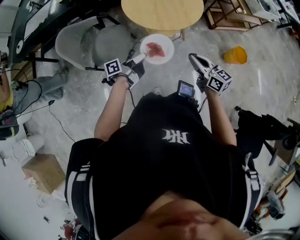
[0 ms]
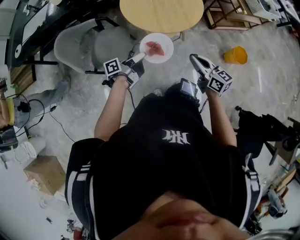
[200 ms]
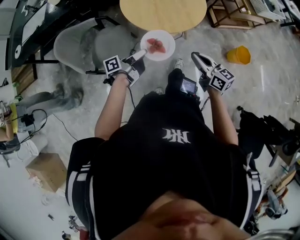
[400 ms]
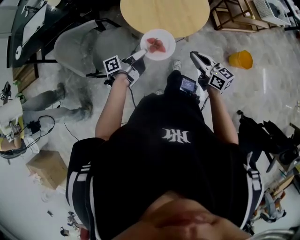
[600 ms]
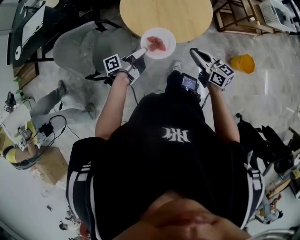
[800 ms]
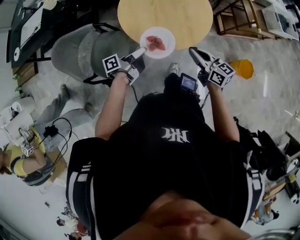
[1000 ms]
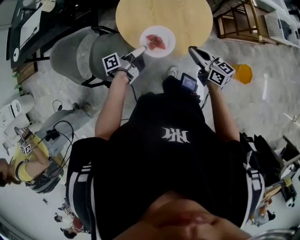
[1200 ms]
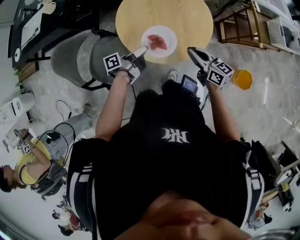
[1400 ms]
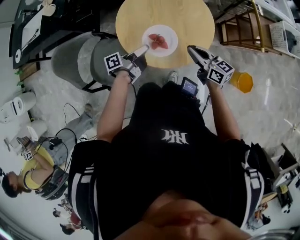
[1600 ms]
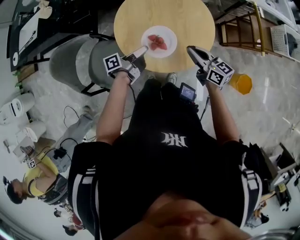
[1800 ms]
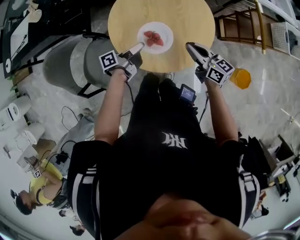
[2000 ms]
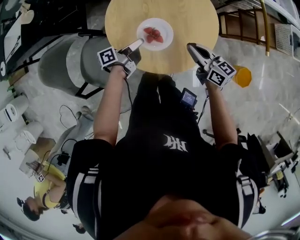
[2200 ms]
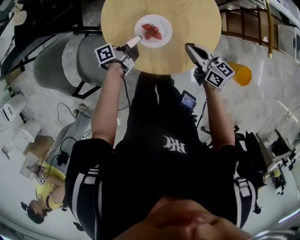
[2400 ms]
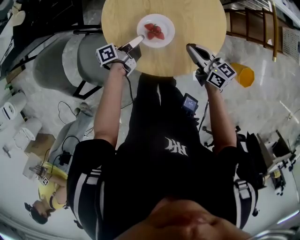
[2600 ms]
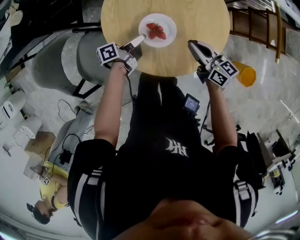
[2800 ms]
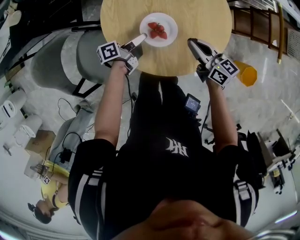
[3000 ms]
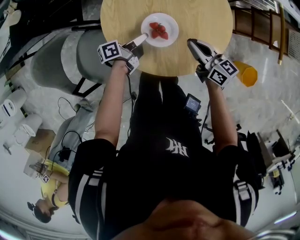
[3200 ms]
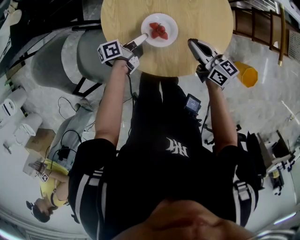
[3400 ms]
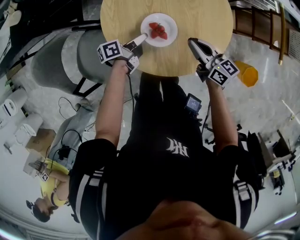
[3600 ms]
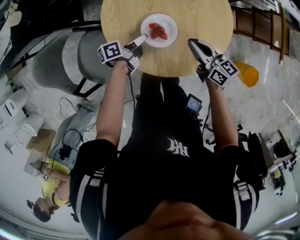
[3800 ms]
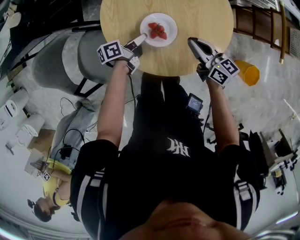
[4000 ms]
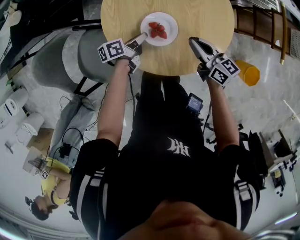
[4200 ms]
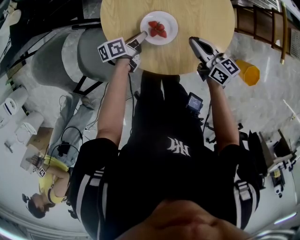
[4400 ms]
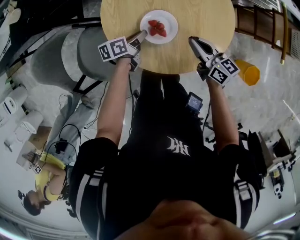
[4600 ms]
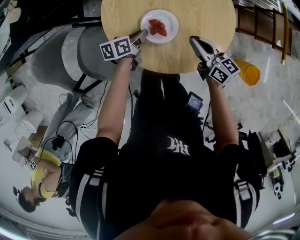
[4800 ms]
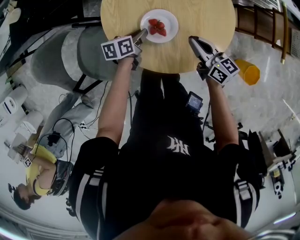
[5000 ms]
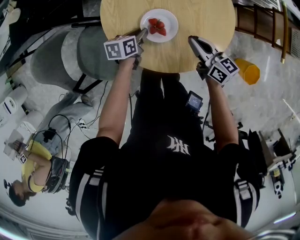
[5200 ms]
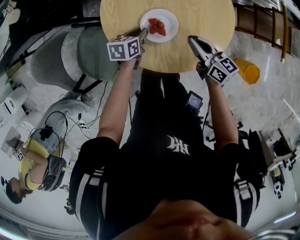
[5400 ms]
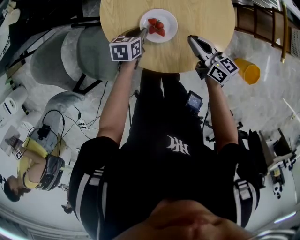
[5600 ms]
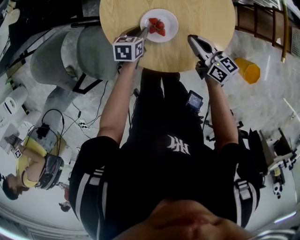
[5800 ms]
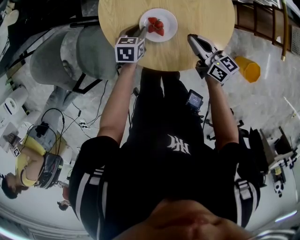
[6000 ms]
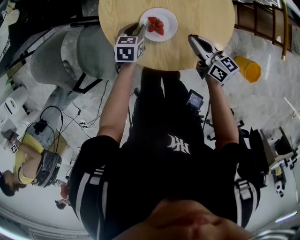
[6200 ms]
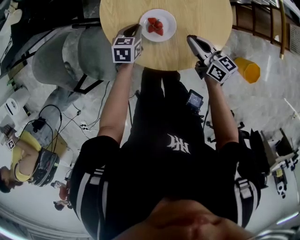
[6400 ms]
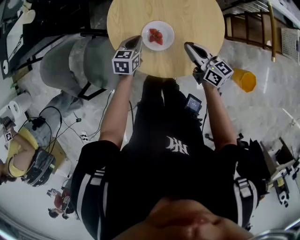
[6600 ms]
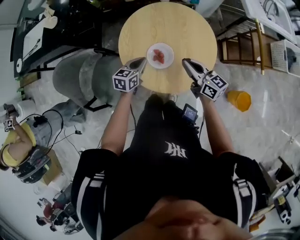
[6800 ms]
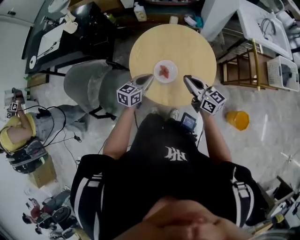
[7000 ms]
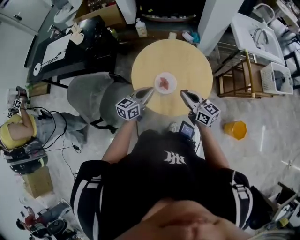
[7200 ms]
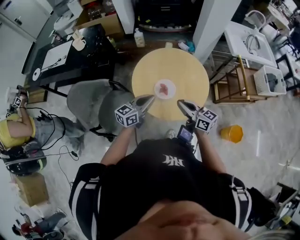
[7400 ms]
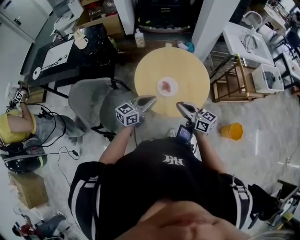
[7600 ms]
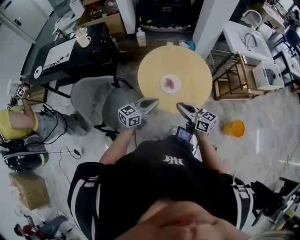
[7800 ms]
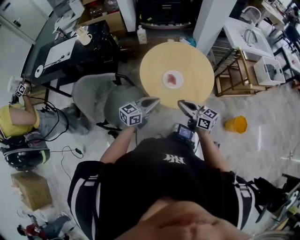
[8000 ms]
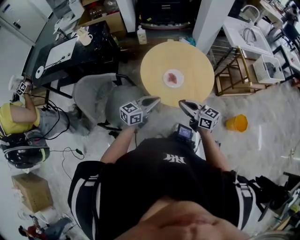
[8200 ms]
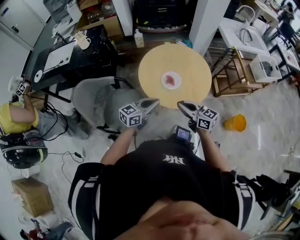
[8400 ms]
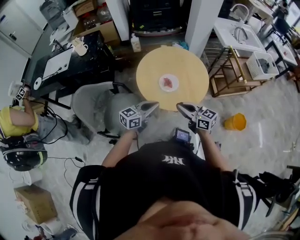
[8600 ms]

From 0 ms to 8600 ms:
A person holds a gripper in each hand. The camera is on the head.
From 0 ms to 1400 ms: The right gripper ends up approximately 30 cm from where it was.
From 1400 ms to 2800 ms: The right gripper shifts by some 15 cm.
From 5800 ms to 7200 ms: The right gripper moves upward, approximately 15 cm.
From 7200 ms to 8600 ms: The right gripper moves about 15 cm.

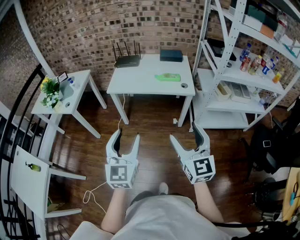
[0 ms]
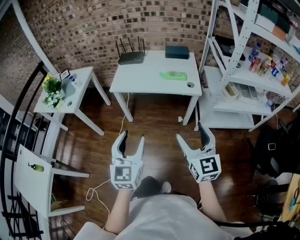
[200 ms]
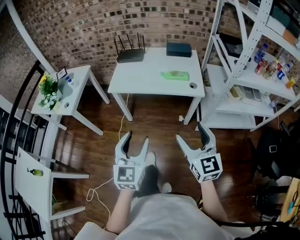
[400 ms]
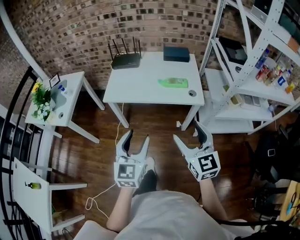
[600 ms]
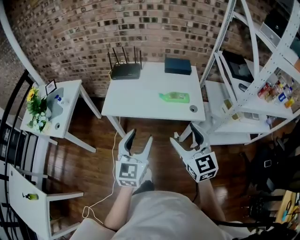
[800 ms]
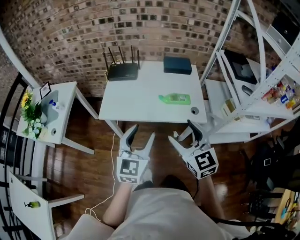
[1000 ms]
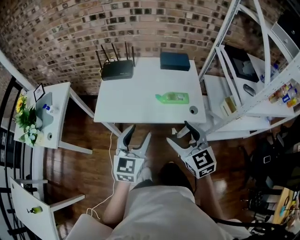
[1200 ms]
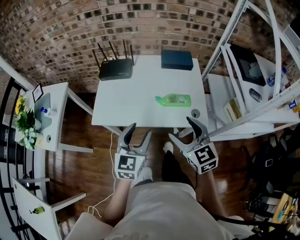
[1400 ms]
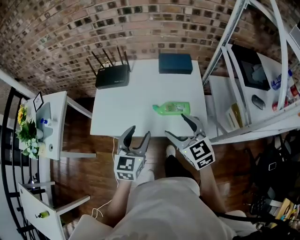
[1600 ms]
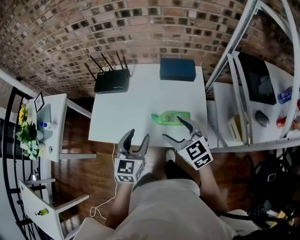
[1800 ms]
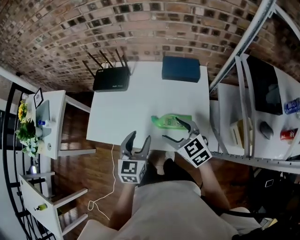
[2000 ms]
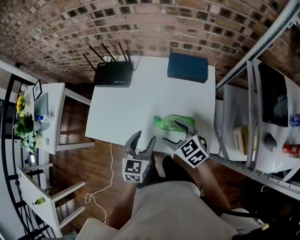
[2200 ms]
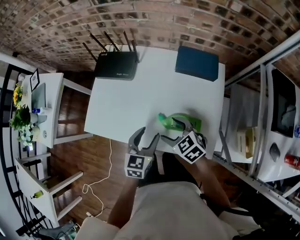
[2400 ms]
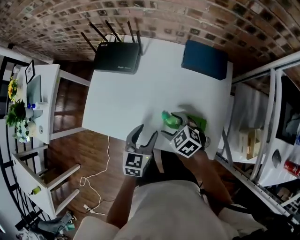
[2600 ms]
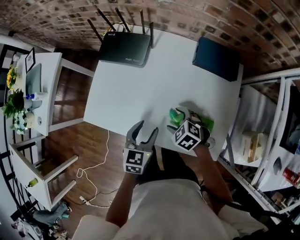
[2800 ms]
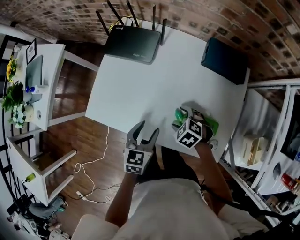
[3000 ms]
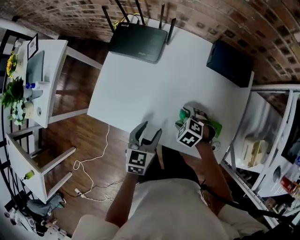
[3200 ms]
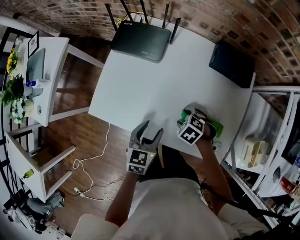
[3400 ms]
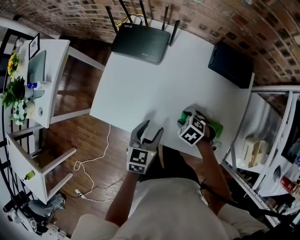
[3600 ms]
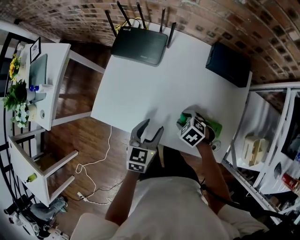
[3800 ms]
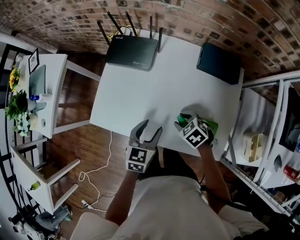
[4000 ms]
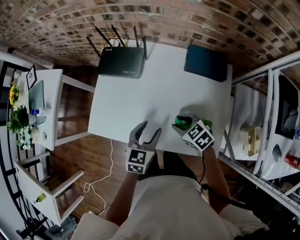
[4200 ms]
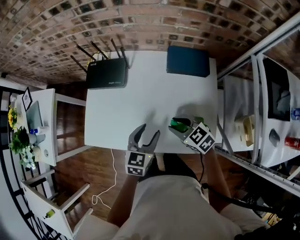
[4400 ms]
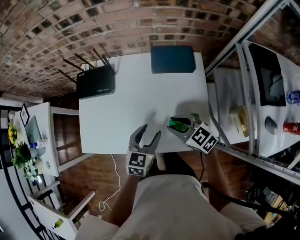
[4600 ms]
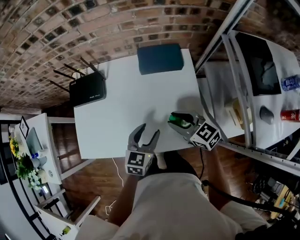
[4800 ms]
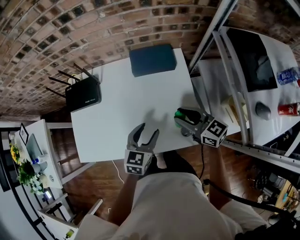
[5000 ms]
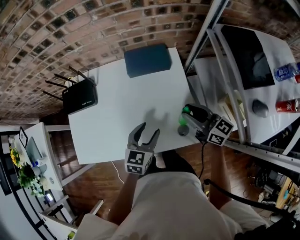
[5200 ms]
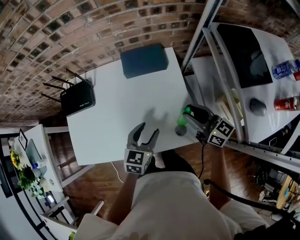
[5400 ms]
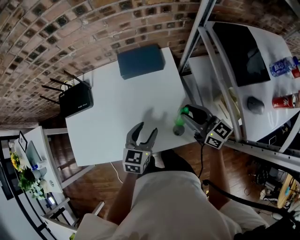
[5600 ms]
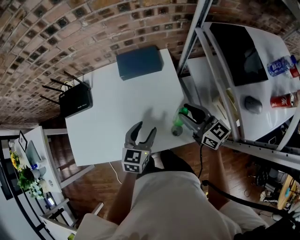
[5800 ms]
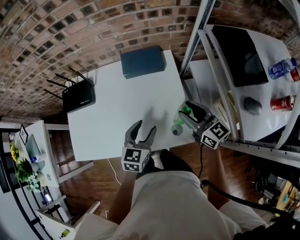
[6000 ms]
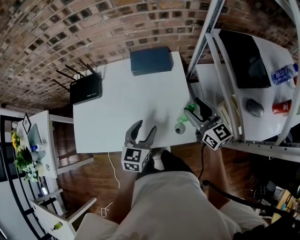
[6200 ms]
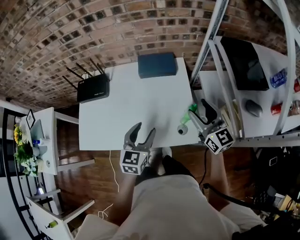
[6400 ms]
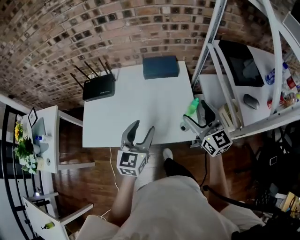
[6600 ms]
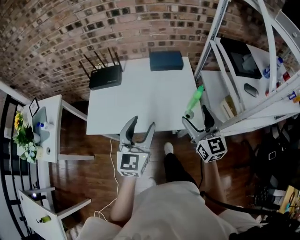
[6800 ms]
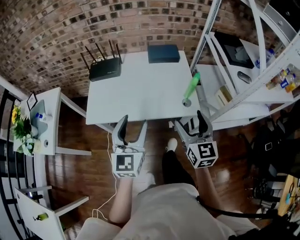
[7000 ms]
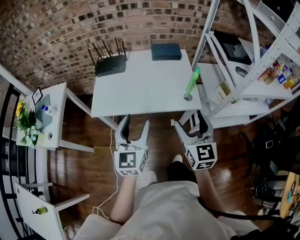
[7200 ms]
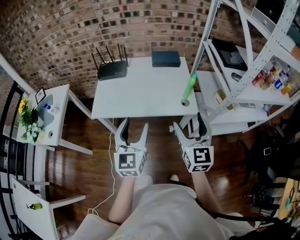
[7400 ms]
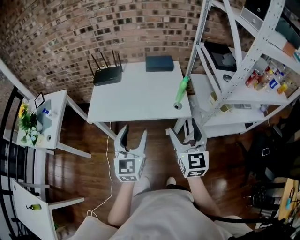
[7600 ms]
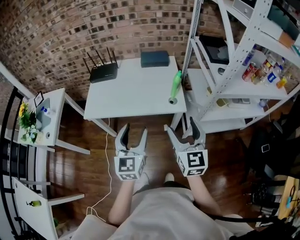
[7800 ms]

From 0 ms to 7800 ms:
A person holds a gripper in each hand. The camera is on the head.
From 0 ms to 1600 ms: Both grippers are carried forward, some 50 cm. The right gripper changes its angle by approximately 30 degrees; the left gripper changes its angle by approximately 20 degrees.
From 1600 ms to 3200 ms: The left gripper travels downward by about 20 cm, and turns by some 30 degrees. Meanwhile the right gripper heads downward, covering about 30 cm, and tilts its fingers about 50 degrees downward.
From 3200 ms to 4600 ms: The right gripper moves upward, some 15 cm, angles its fingers upward, by approximately 40 degrees, and closes up. Meanwhile the left gripper shifts by roughly 15 cm, and swivels roughly 20 degrees.
From 4600 ms to 6200 ms: The left gripper heads to the right, covering approximately 10 cm; the right gripper moves to the right and upward, approximately 20 cm, and turns by approximately 40 degrees.
From 6200 ms to 7800 ms: The right gripper travels backward by about 35 cm, and swivels roughly 20 degrees. Meanwhile the left gripper goes some 35 cm backward and upward, and changes its angle by about 30 degrees.

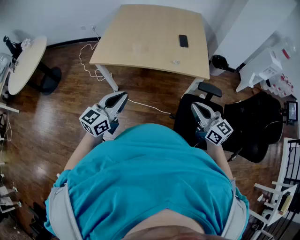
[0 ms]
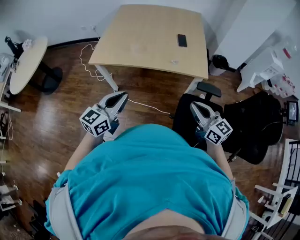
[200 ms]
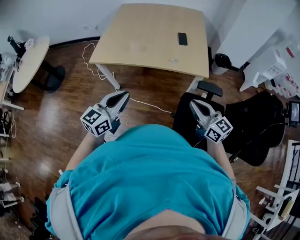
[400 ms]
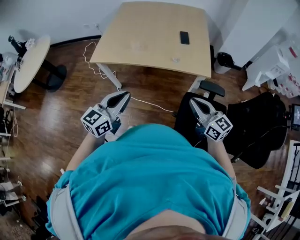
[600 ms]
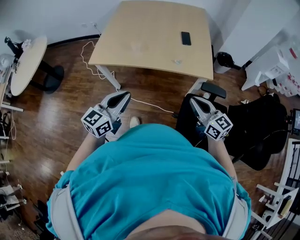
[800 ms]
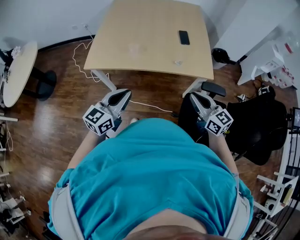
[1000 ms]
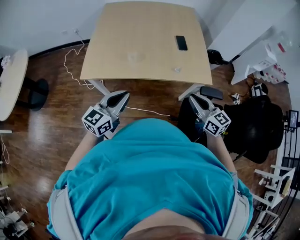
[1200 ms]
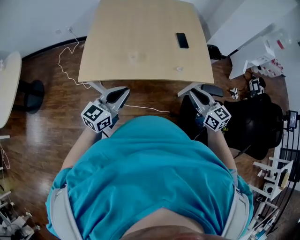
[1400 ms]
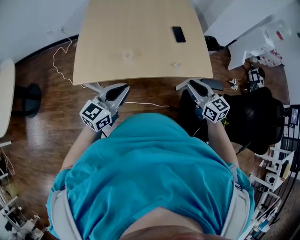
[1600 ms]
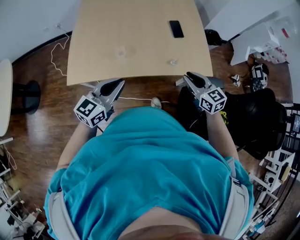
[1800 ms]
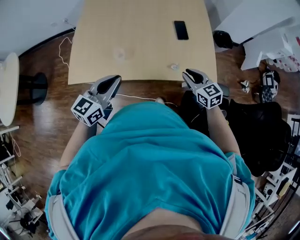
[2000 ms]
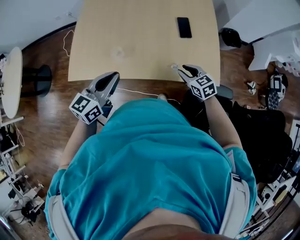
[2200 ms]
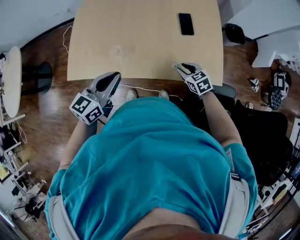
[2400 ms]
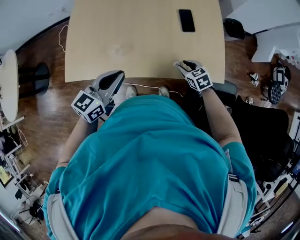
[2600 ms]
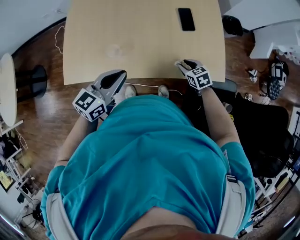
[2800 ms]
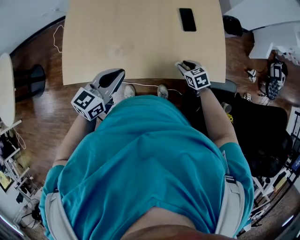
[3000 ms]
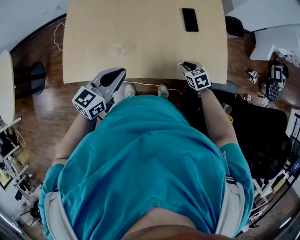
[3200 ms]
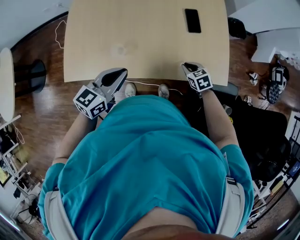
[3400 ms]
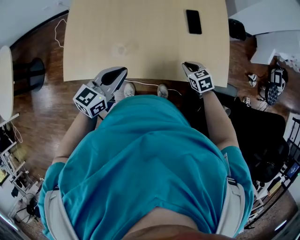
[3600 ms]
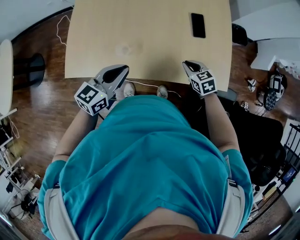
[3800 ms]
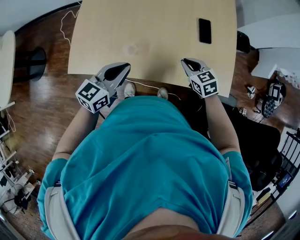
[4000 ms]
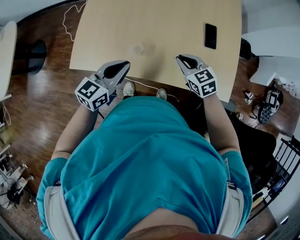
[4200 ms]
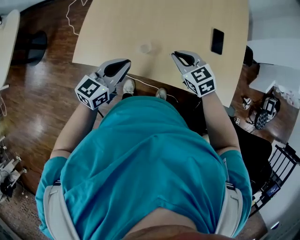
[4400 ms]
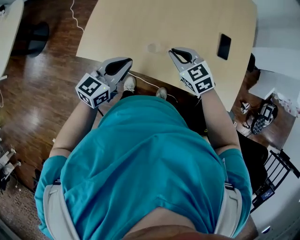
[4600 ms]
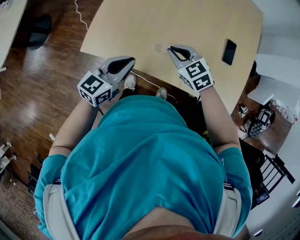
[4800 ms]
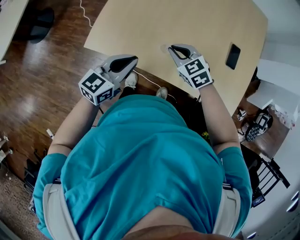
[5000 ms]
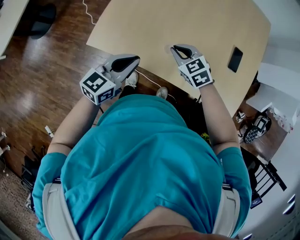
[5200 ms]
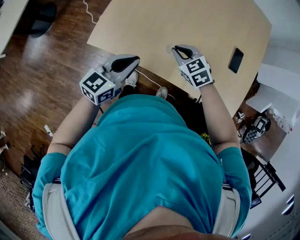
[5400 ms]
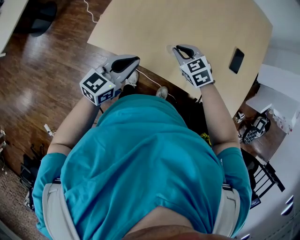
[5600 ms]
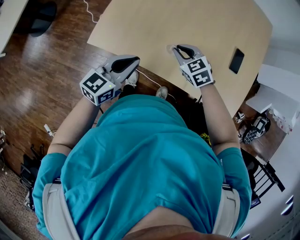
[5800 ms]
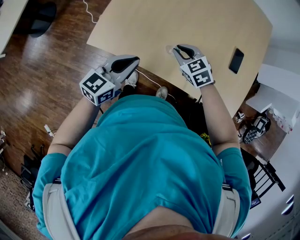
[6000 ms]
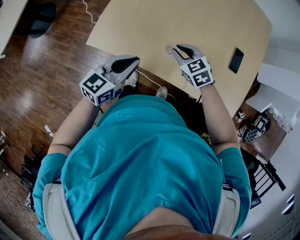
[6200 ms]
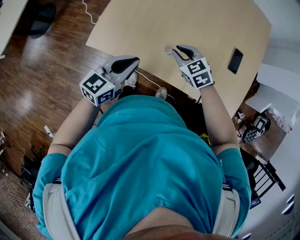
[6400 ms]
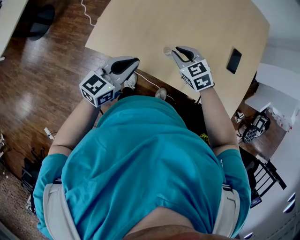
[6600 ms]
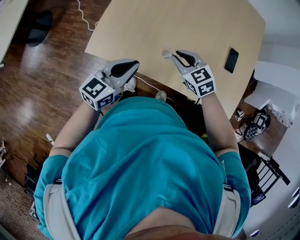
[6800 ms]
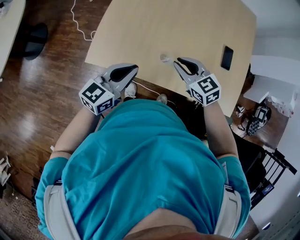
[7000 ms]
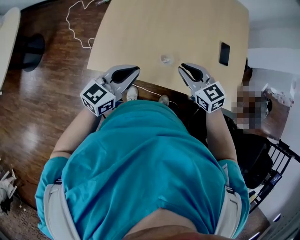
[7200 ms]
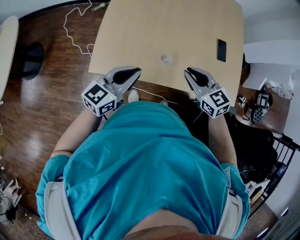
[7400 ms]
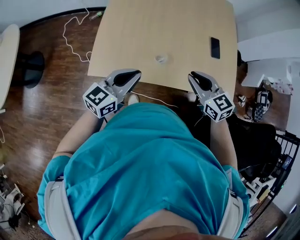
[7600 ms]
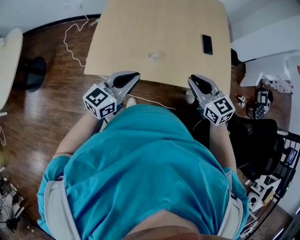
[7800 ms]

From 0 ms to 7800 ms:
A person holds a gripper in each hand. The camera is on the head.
From 0 ms to 1600 ms: Both grippers move forward, roughly 25 cm.
From 1600 ms to 3200 ms: The right gripper travels downward and forward by approximately 35 cm, and tilts its fingers roughly 40 degrees downward. Meanwhile the left gripper goes some 15 cm forward and downward.
From 3200 ms to 4600 ms: The left gripper is displaced to the left by some 10 cm; the right gripper is displaced to the left and upward by about 30 cm, and turns by about 40 degrees.
From 4600 ms to 6200 ms: The left gripper changes place by approximately 5 cm. Meanwhile the right gripper is displaced to the left and downward by about 10 cm.
From 6200 ms to 7800 ms: The right gripper moves backward, upward and to the right, about 25 cm, and swivels approximately 40 degrees, while the left gripper is displaced upward and backward by about 10 cm, and swivels approximately 20 degrees.
